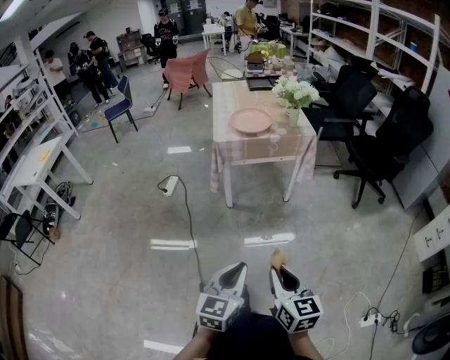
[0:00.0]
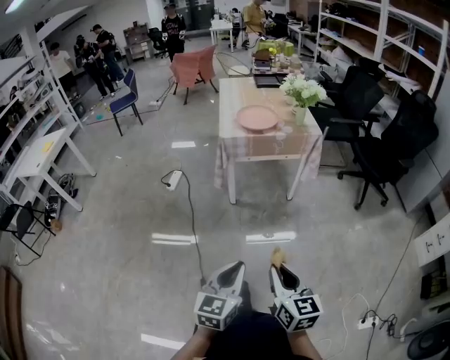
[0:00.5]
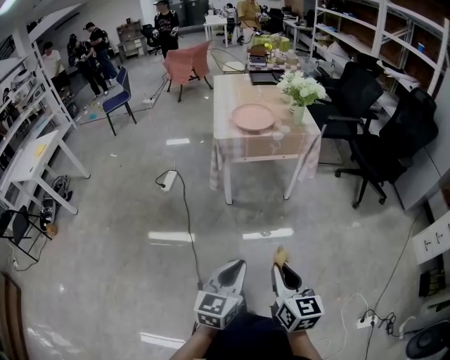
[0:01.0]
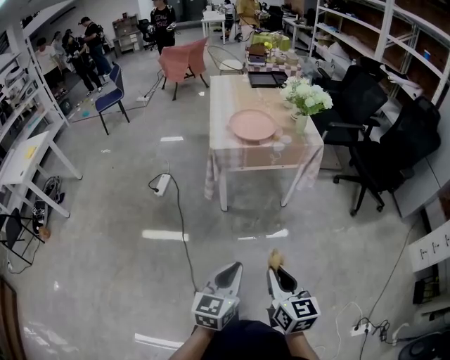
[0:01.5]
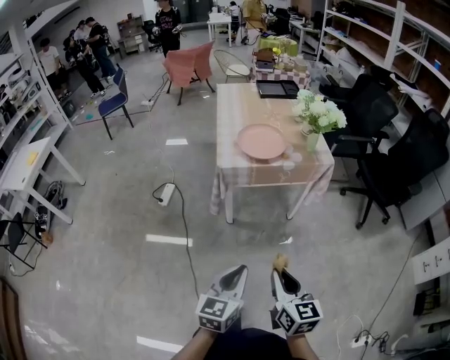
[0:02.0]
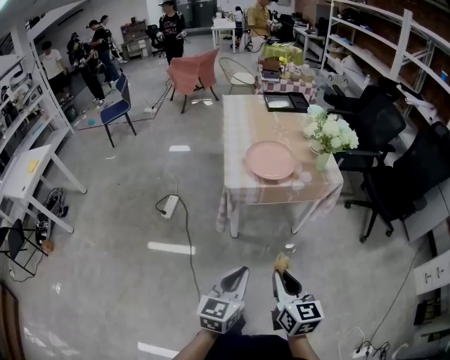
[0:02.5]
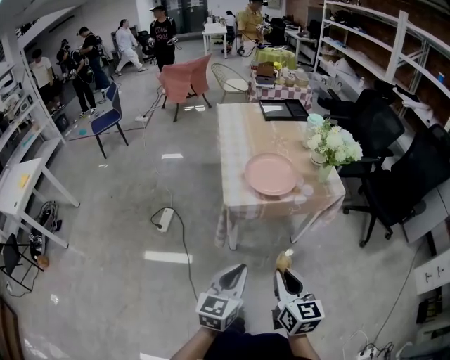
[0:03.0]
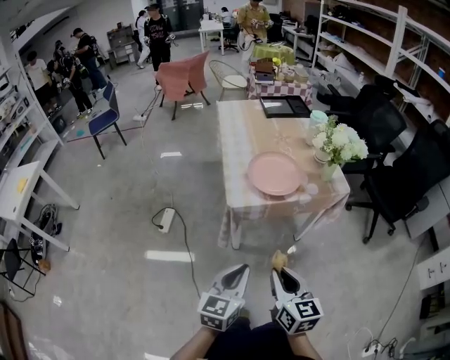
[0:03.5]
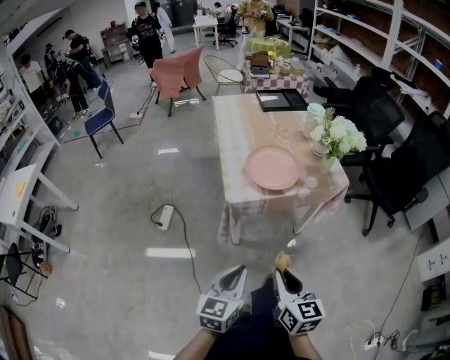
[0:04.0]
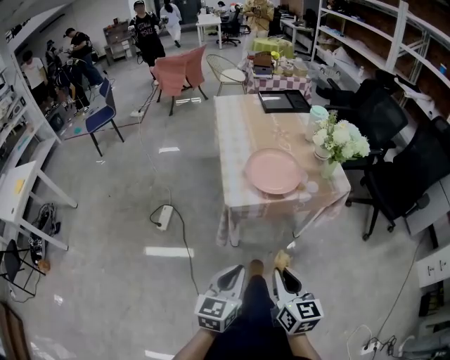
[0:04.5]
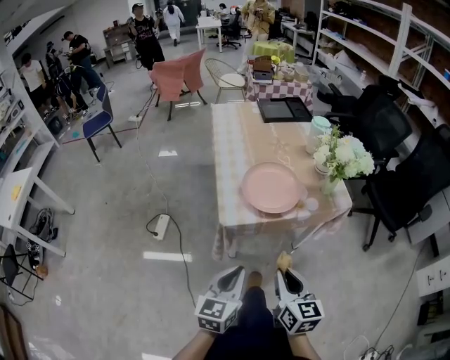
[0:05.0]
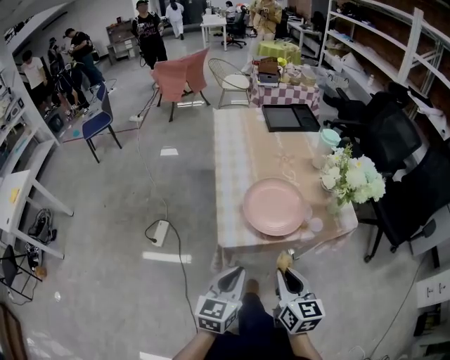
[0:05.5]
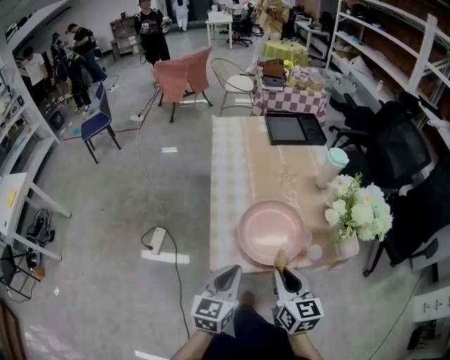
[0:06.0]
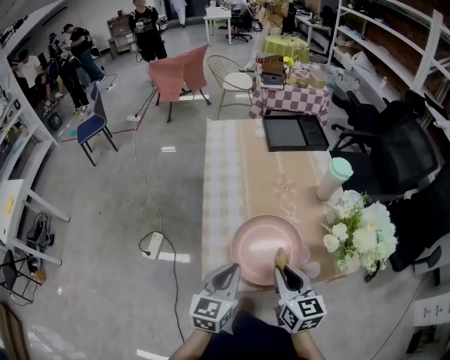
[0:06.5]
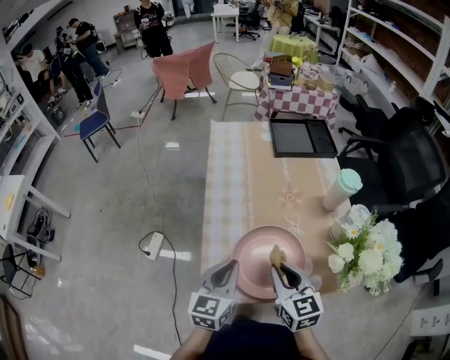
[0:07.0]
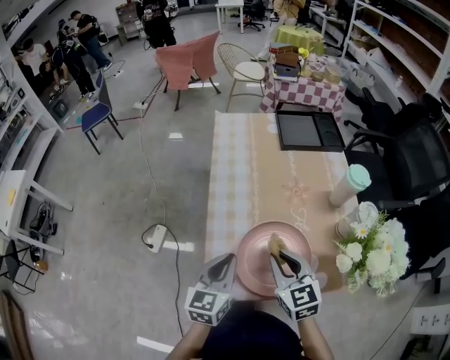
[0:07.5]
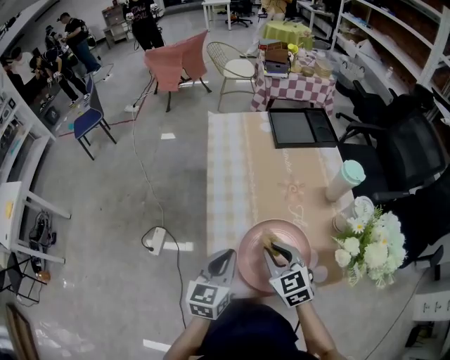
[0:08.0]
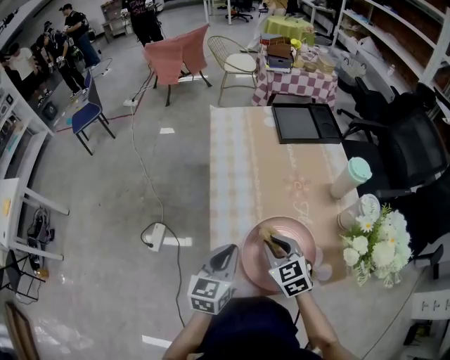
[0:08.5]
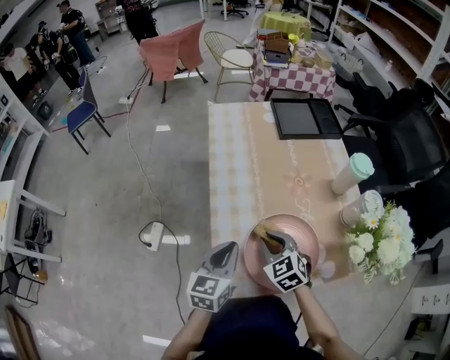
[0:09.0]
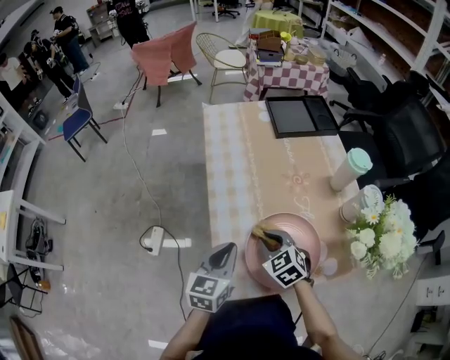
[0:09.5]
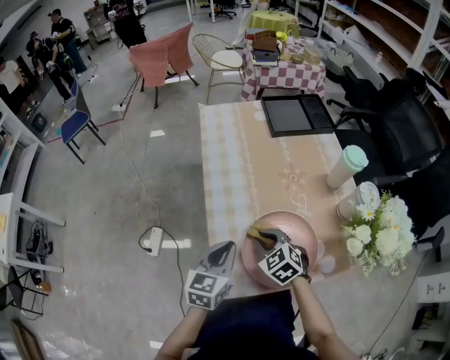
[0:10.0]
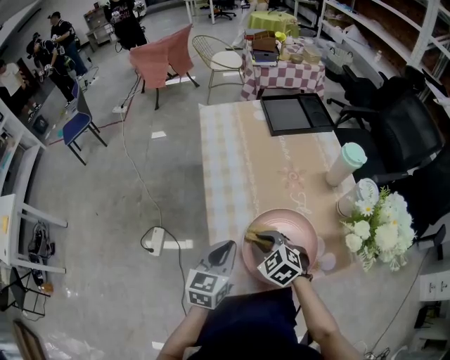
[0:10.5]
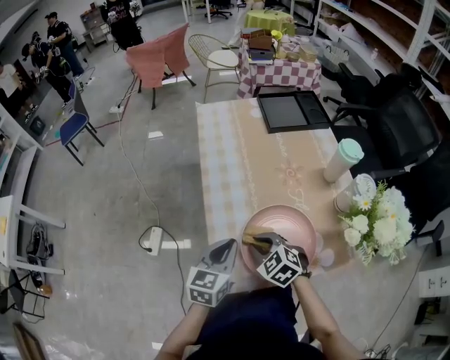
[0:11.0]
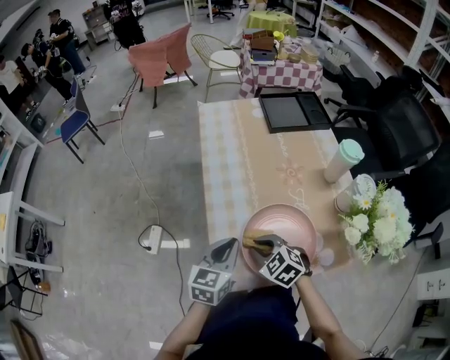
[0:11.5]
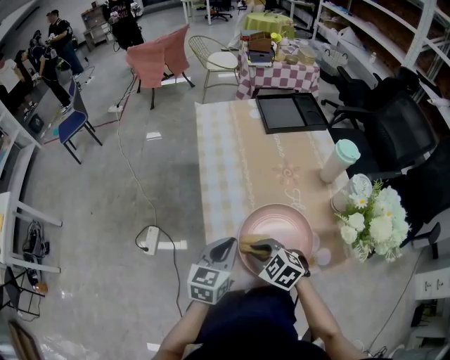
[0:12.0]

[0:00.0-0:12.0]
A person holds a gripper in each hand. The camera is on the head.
0:00.0 to 0:02.0: Both grippers move forward, some 20 cm.
0:02.0 to 0:04.0: The grippers both shift forward and to the left by approximately 20 cm.
0:04.0 to 0:06.0: Both grippers travel together forward, some 30 cm.
0:06.0 to 0:08.0: Both grippers travel together forward, some 15 cm. The right gripper changes its angle by roughly 30 degrees.
0:08.0 to 0:10.0: The right gripper moves downward, about 10 cm.
0:10.0 to 0:12.0: The right gripper moves backward, approximately 5 cm.

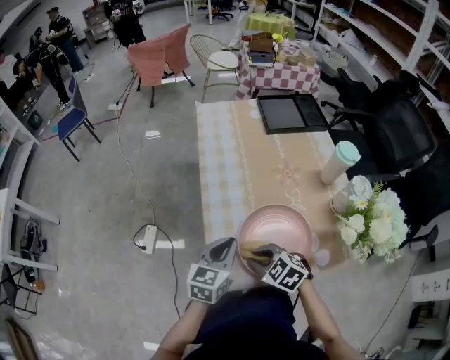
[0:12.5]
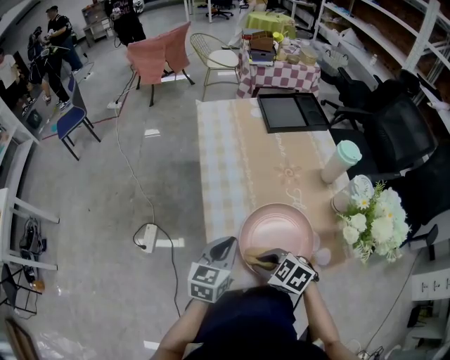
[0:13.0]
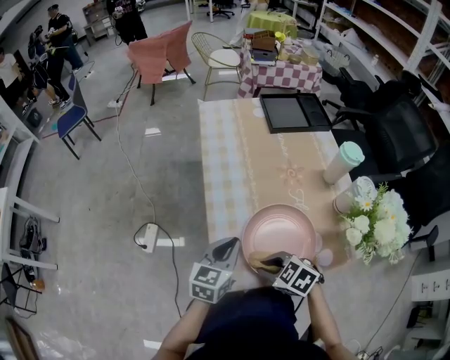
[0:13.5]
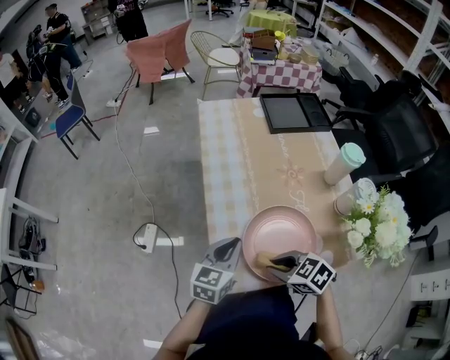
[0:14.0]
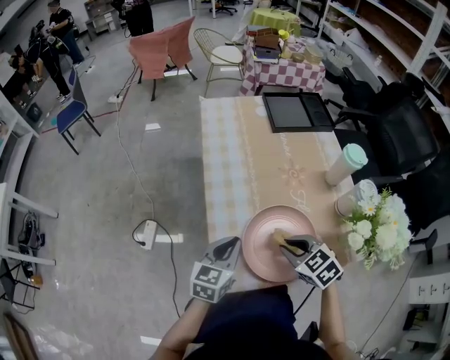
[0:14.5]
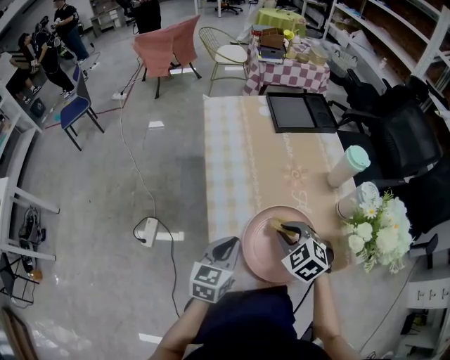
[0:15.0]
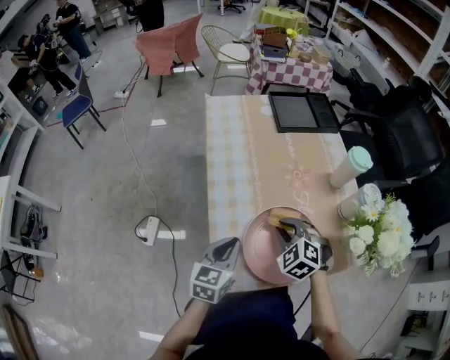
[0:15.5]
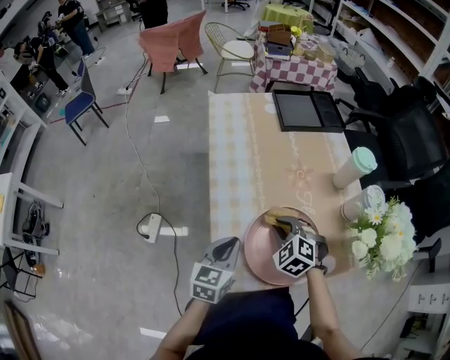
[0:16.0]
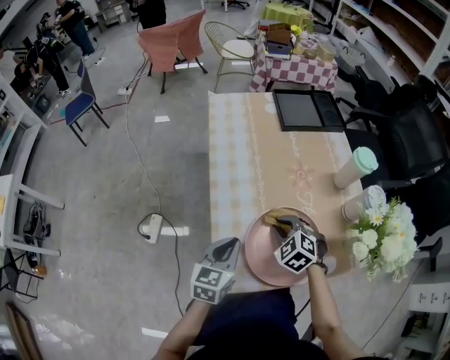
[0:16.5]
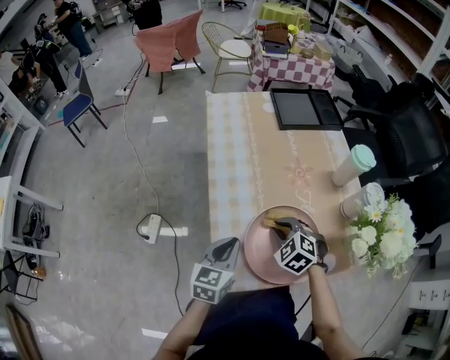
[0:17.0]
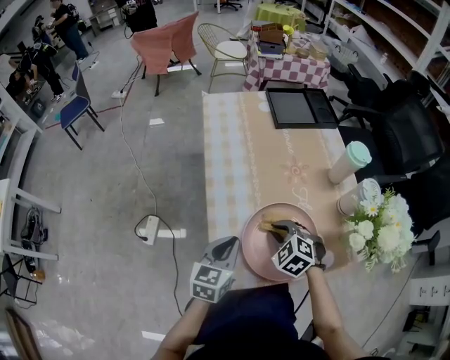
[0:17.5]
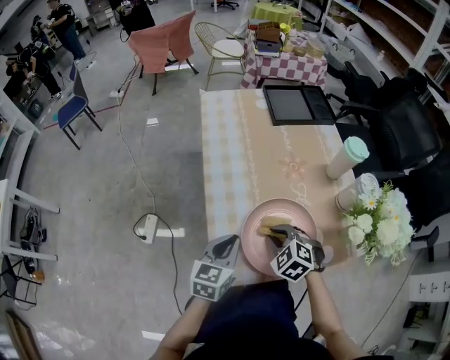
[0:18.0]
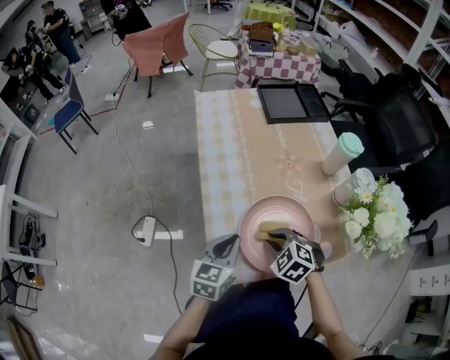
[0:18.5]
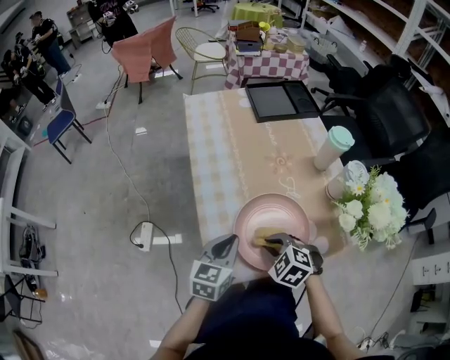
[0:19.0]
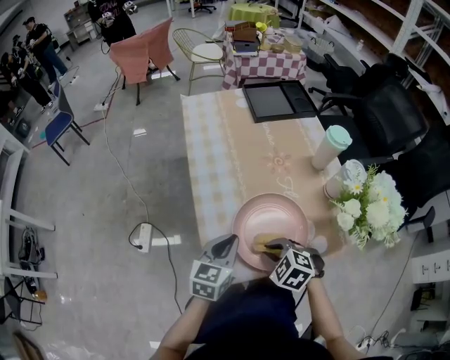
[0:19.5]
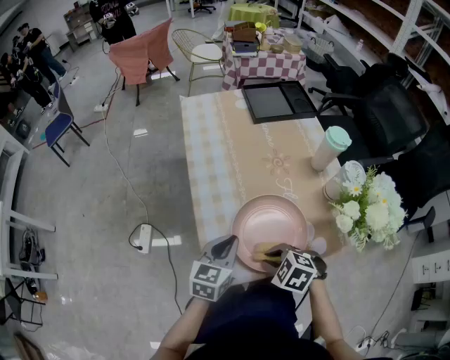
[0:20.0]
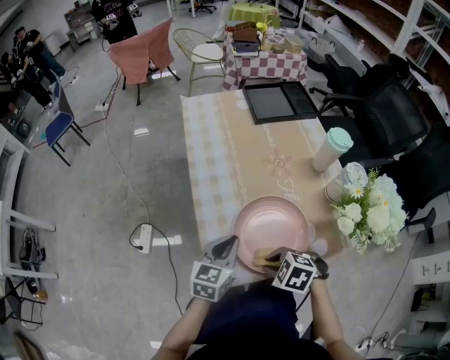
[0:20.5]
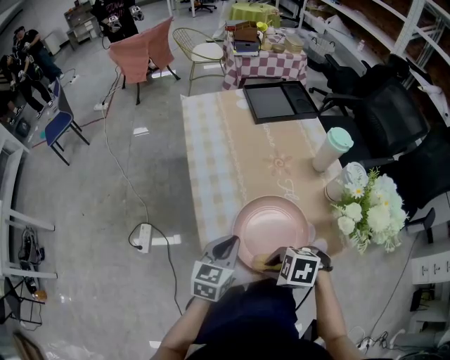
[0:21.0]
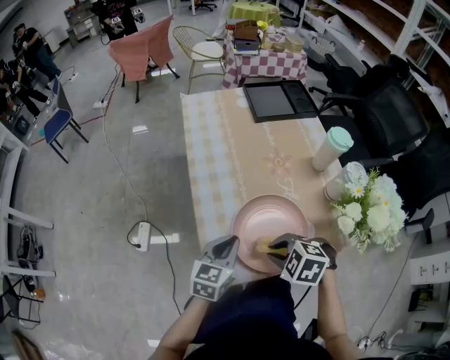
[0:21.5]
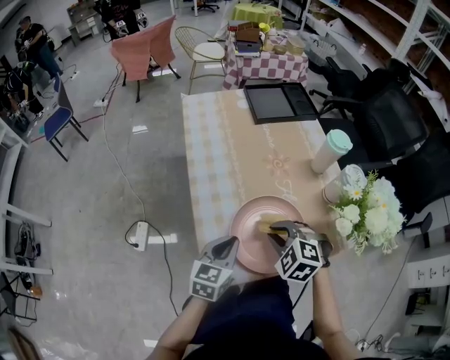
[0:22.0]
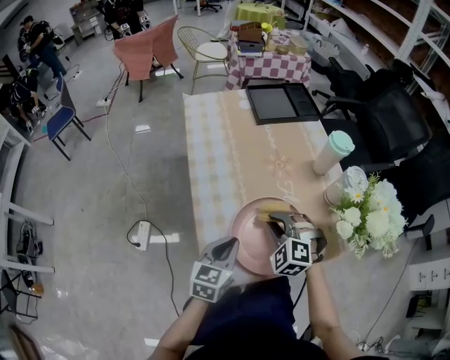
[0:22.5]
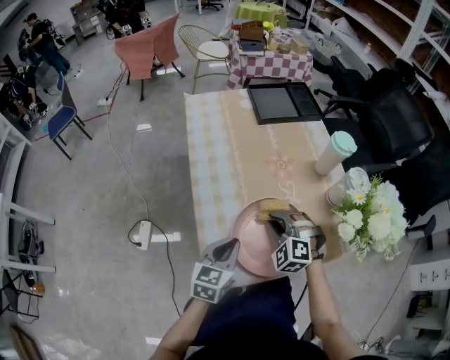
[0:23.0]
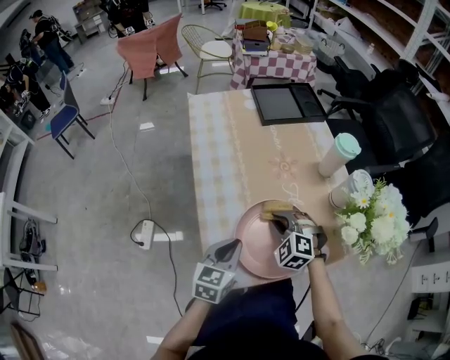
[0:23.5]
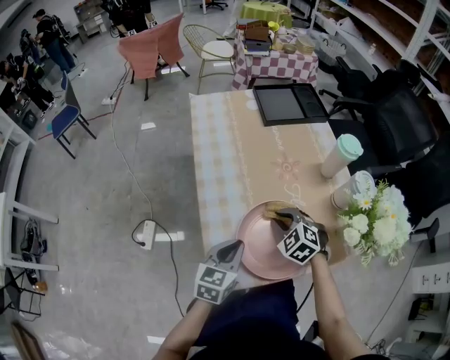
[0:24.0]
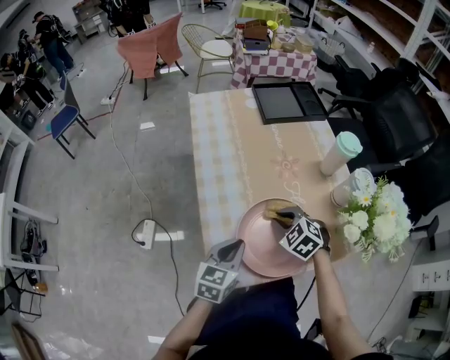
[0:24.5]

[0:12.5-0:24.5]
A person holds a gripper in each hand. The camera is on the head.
0:12.5 to 0:14.5: The right gripper shifts roughly 10 cm to the right.
0:14.5 to 0:16.5: The right gripper moves forward and downward, about 10 cm, and swivels some 20 degrees.
0:16.5 to 0:18.5: The right gripper shifts about 10 cm backward.
0:18.5 to 0:20.5: The right gripper shifts approximately 10 cm backward, and swivels roughly 20 degrees.
0:20.5 to 0:22.5: The right gripper changes place by about 15 cm, and swivels some 40 degrees.
0:22.5 to 0:24.5: The right gripper rotates some 30 degrees.

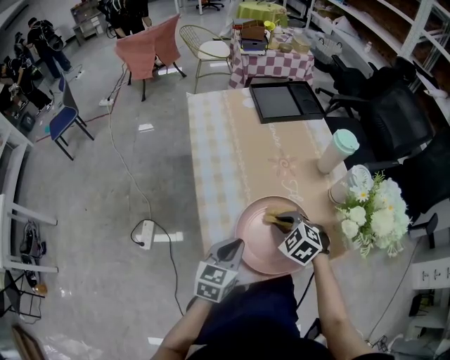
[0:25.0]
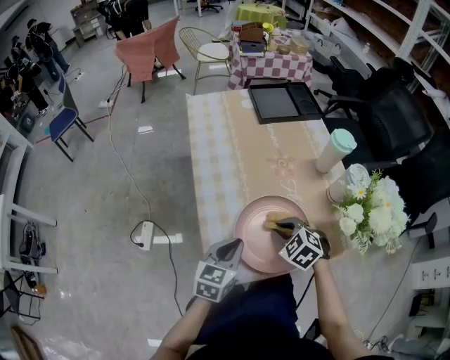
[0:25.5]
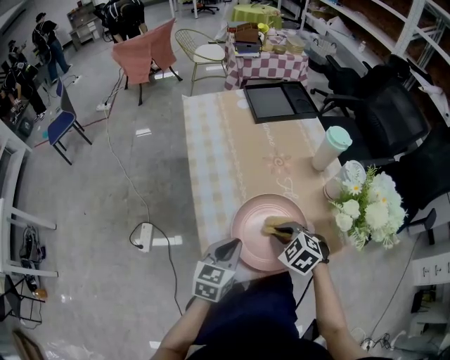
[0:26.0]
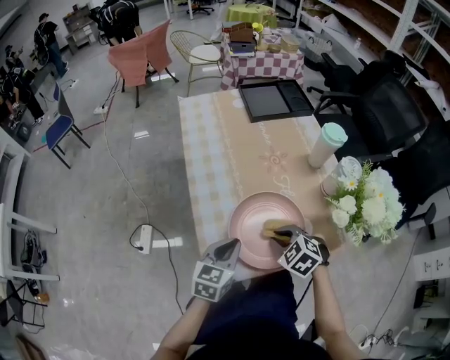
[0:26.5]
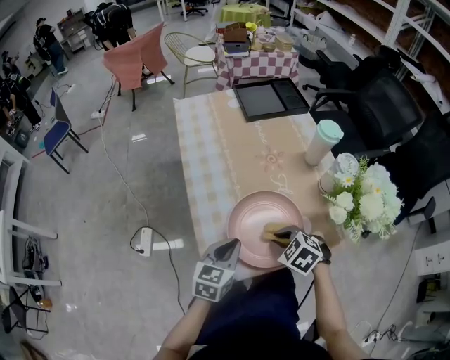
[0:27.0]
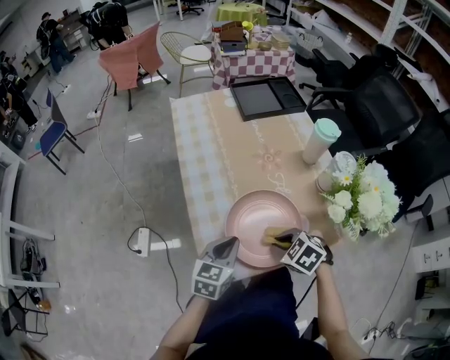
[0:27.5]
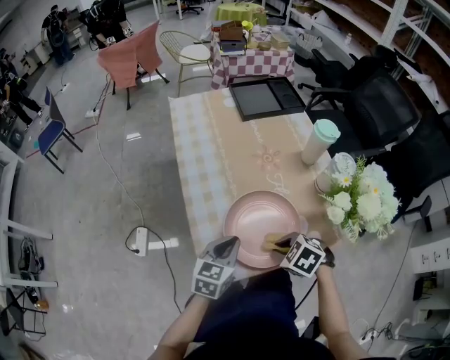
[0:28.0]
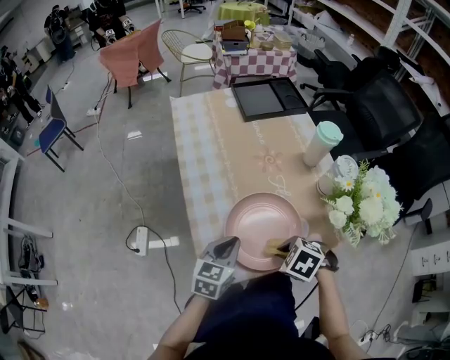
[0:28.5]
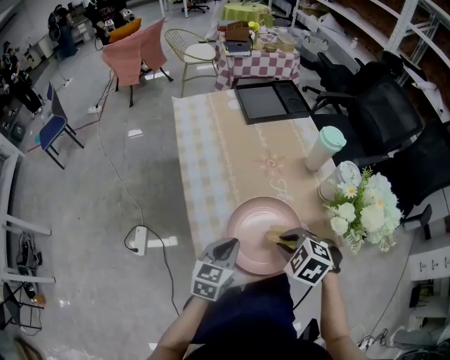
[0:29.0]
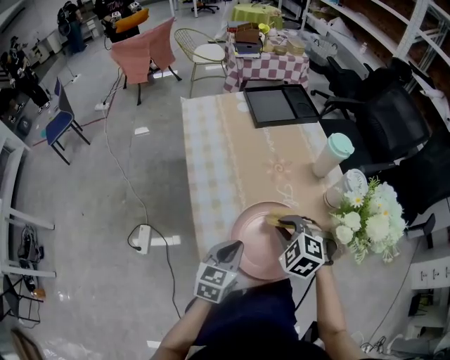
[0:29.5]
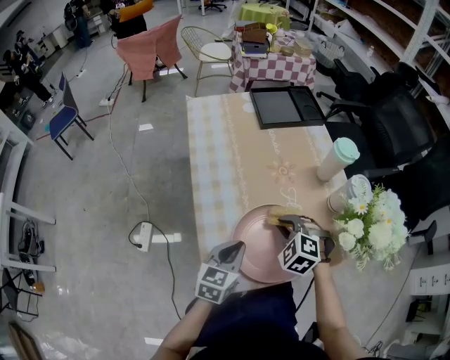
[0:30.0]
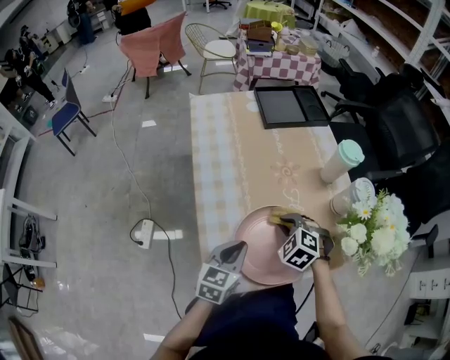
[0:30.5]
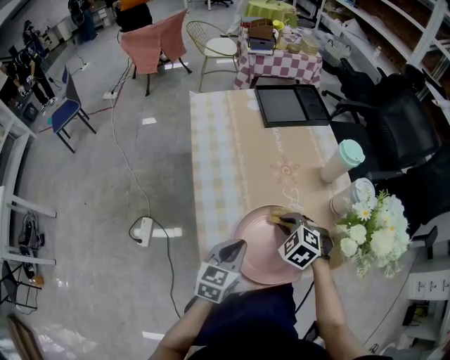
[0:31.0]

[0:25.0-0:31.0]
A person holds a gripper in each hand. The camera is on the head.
0:25.0 to 0:27.0: The right gripper is displaced backward by some 10 cm.
0:27.0 to 0:29.0: The right gripper heads upward, covering roughly 5 cm.
0:29.0 to 0:31.0: The right gripper shifts some 10 cm forward and downward.
